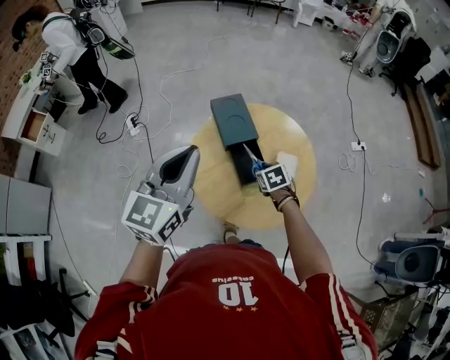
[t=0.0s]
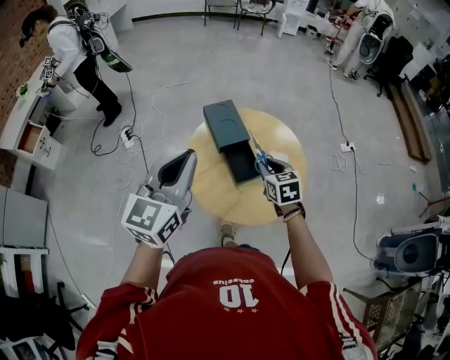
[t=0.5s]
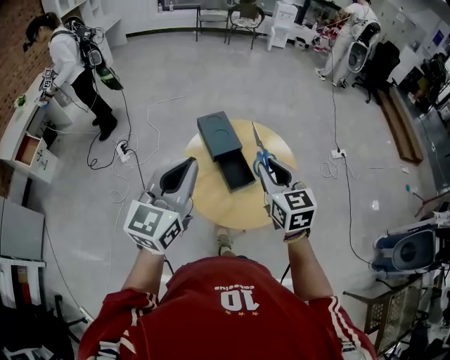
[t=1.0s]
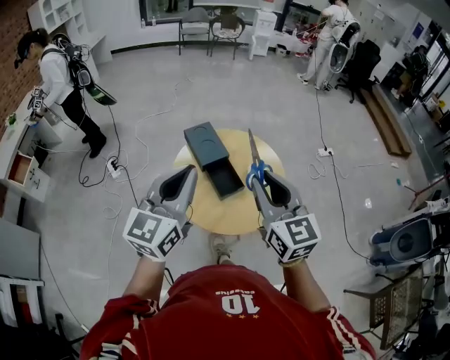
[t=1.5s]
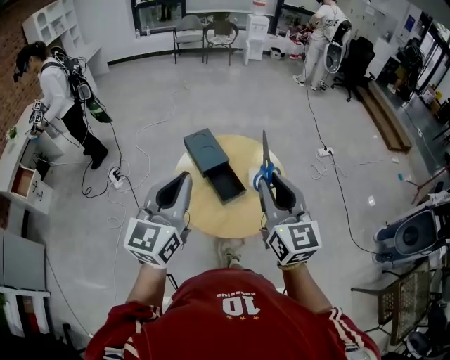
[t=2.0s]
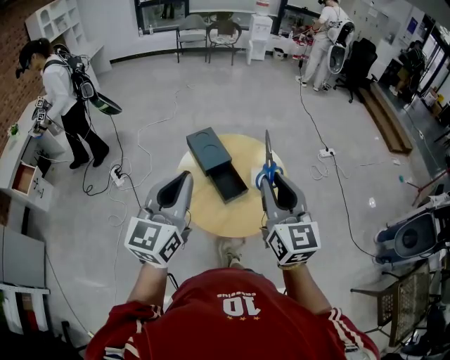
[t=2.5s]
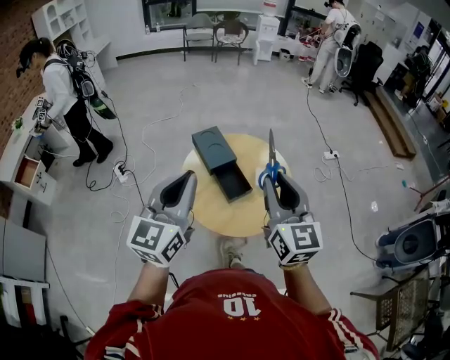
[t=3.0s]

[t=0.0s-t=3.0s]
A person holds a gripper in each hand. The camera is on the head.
t=0.0s to t=1.5s: The left gripper moves backward and upward, about 10 cm; the right gripper moves upward and backward, roughly 40 cm, and angles its fingers upward, by some 60 degrees.
t=1.5s to t=3.0s: The grippers make only small movements.

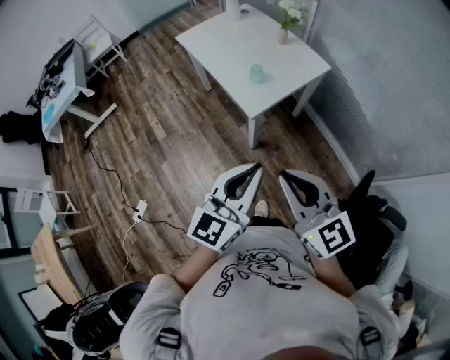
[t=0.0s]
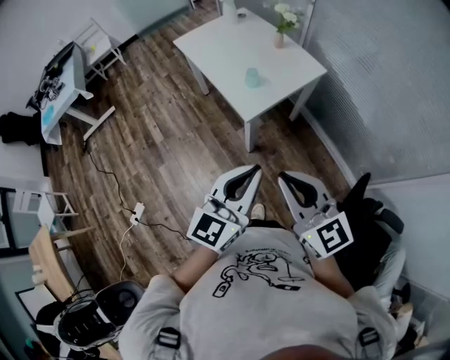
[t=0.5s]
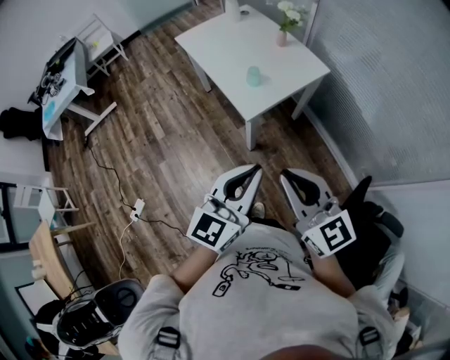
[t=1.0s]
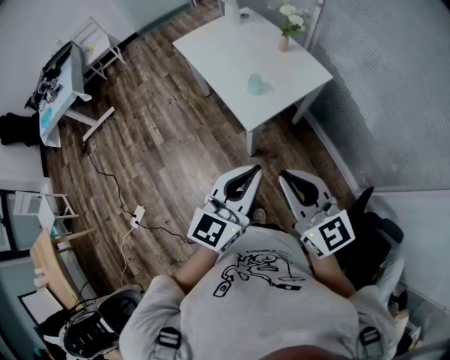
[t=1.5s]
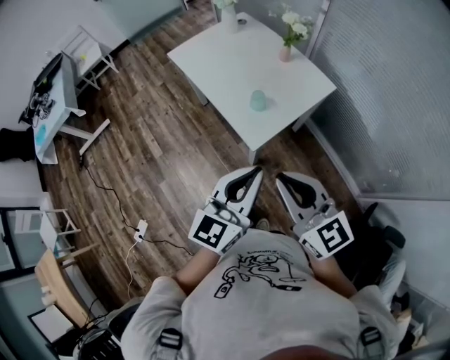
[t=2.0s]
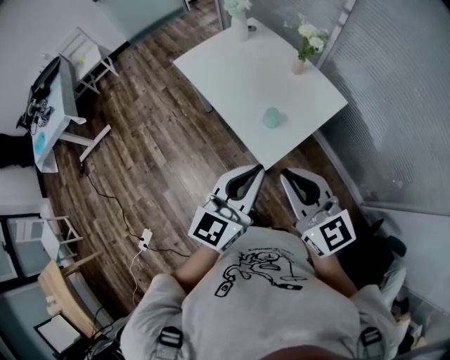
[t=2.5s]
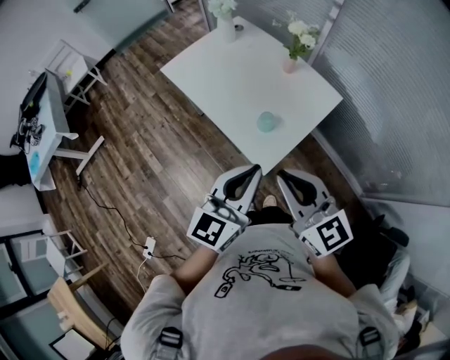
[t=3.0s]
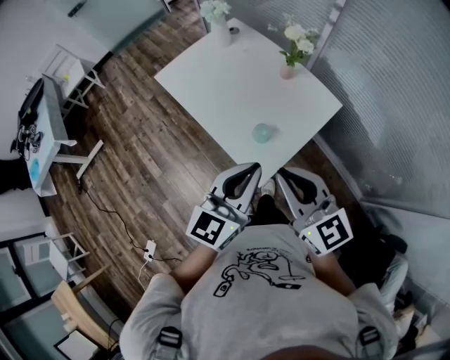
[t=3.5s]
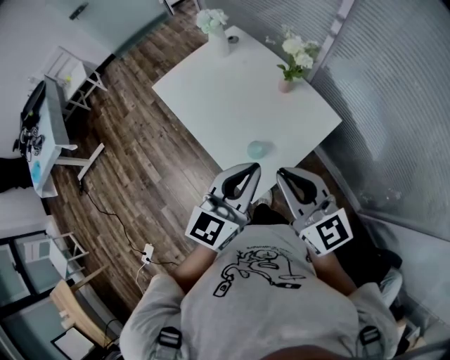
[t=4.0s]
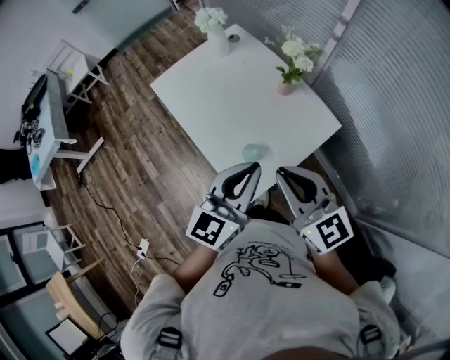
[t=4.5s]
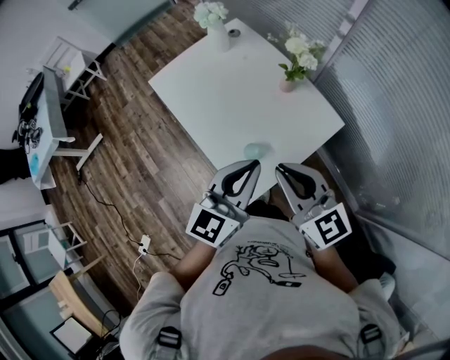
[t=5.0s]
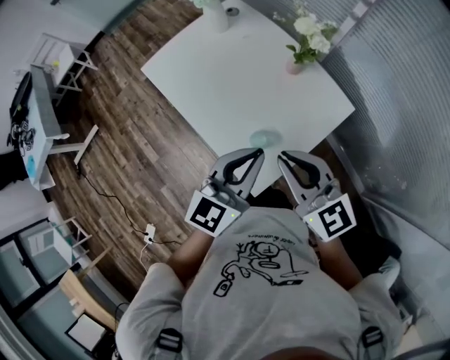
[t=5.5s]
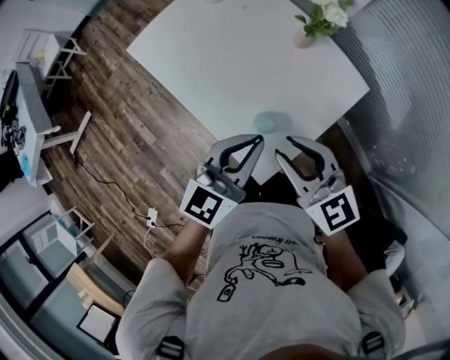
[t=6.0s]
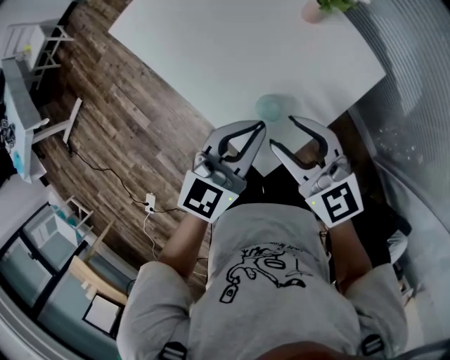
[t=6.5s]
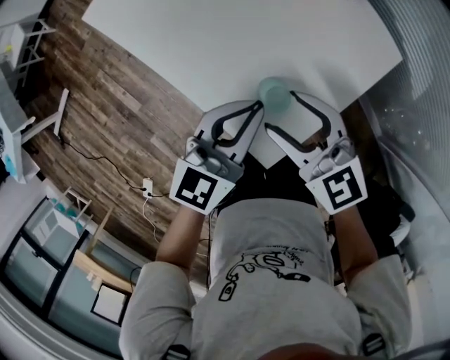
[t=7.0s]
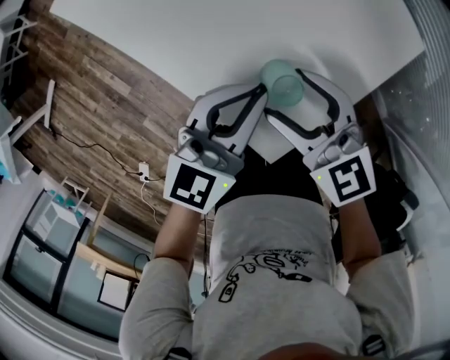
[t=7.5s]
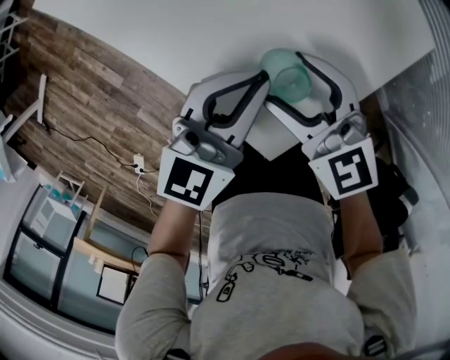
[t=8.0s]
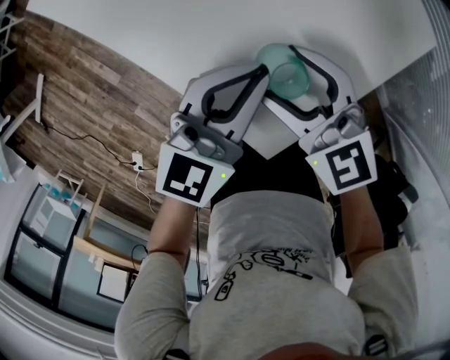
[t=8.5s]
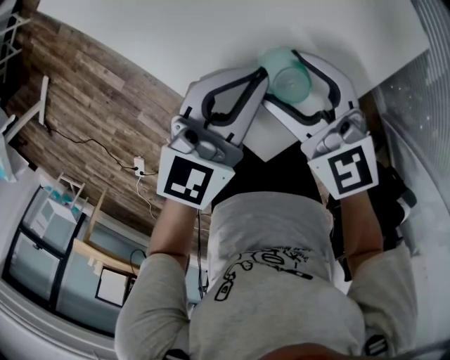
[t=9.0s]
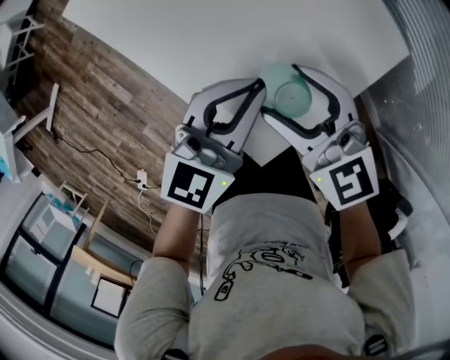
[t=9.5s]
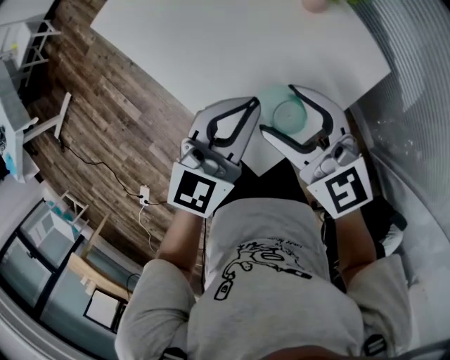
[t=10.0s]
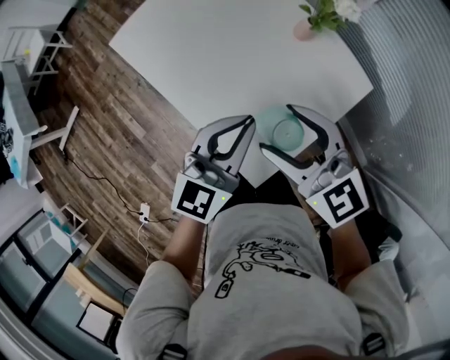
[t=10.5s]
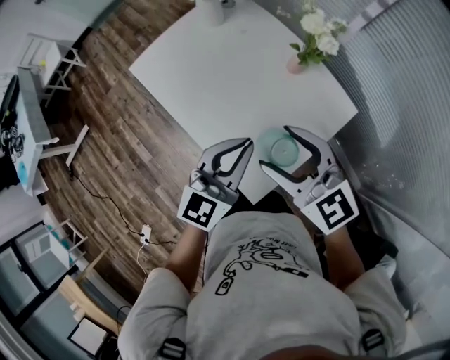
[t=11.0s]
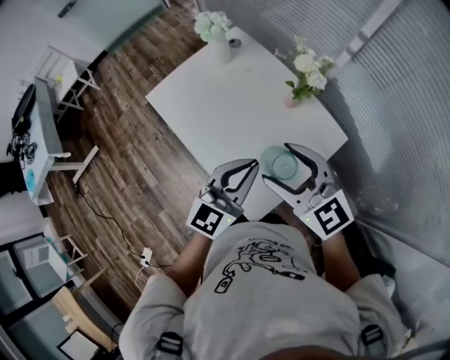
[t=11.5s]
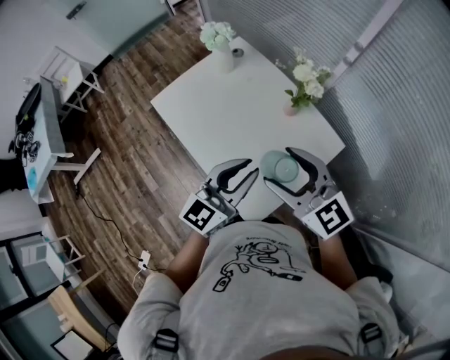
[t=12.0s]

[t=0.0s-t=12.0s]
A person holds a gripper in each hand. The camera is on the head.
t=0.0s to t=2.0s: Both grippers travel together forward, some 15 cm.
t=2.0s to t=4.0s: The grippers both shift forward by approximately 25 cm.
t=4.0s to t=6.0s: The two grippers go approximately 15 cm downward and forward.
t=6.0s to t=8.0s: Both grippers move downward, roughly 20 cm. The right gripper opens up.
t=8.0s to t=10.0s: Both grippers travel together upward, about 15 cm.
t=10.0s to t=12.0s: Both grippers travel together upward, roughly 15 cm.

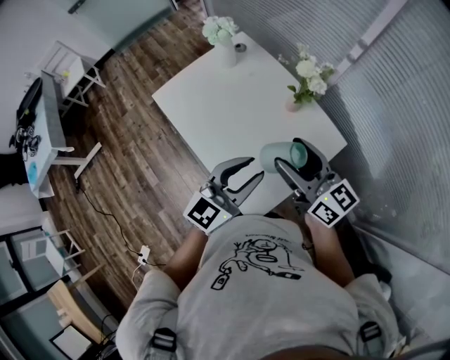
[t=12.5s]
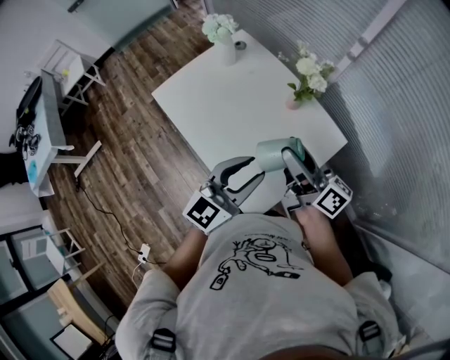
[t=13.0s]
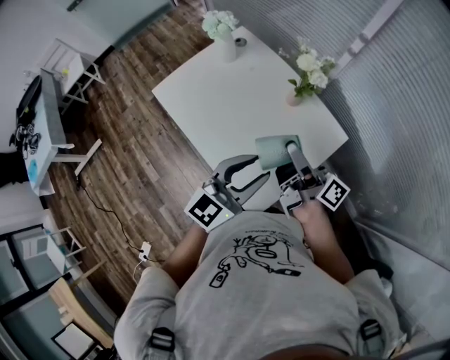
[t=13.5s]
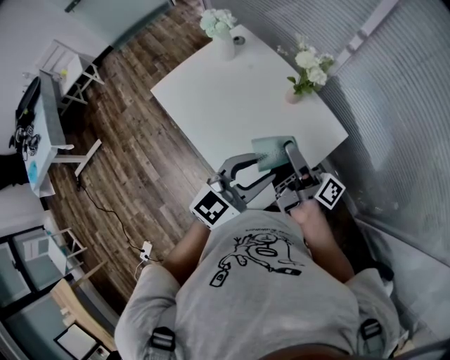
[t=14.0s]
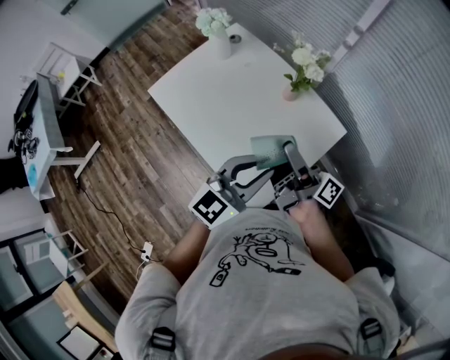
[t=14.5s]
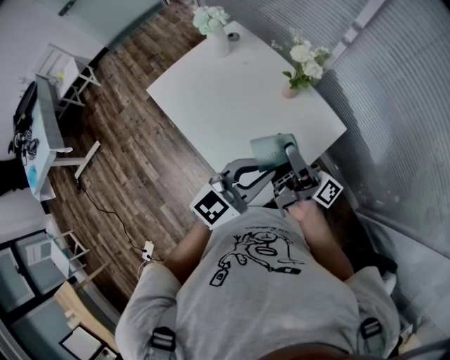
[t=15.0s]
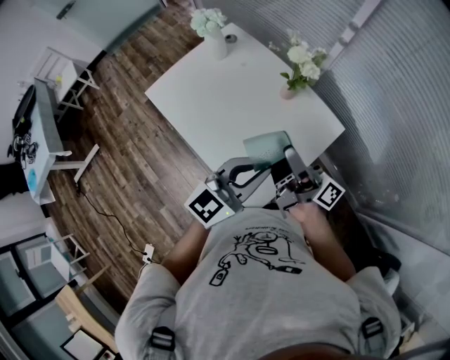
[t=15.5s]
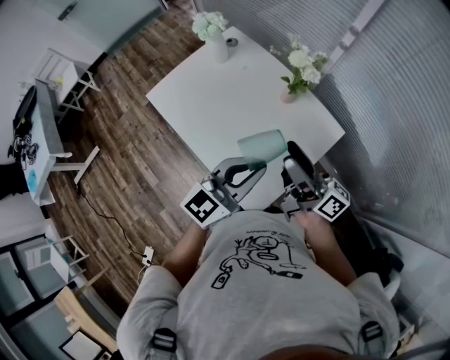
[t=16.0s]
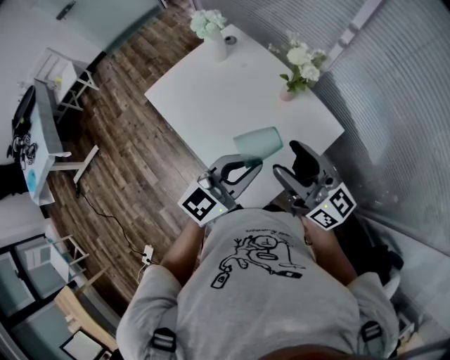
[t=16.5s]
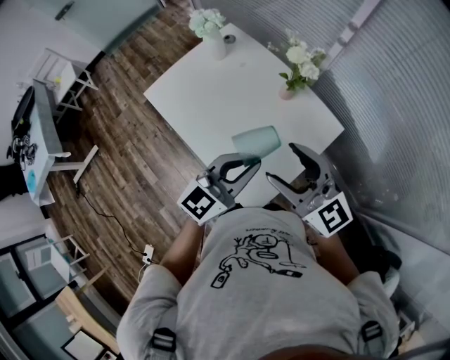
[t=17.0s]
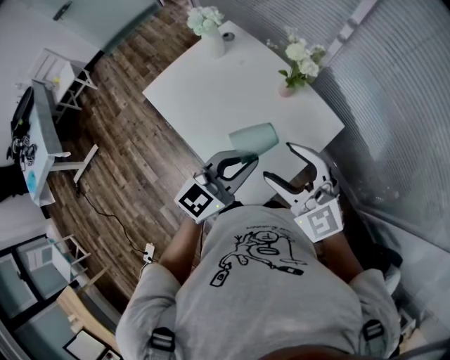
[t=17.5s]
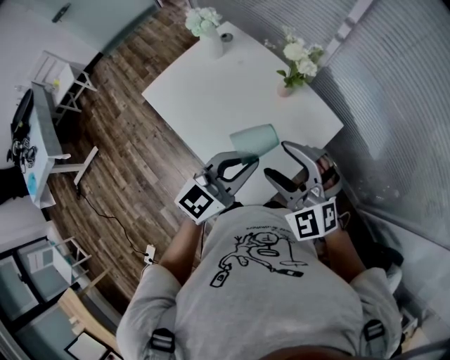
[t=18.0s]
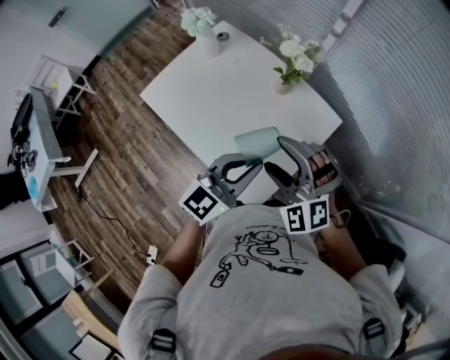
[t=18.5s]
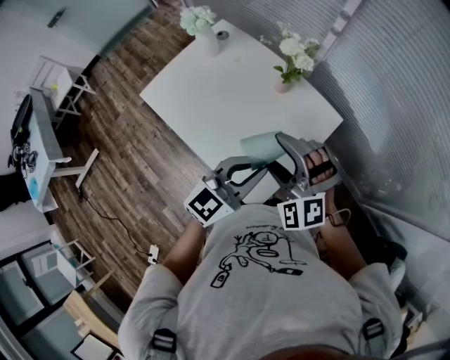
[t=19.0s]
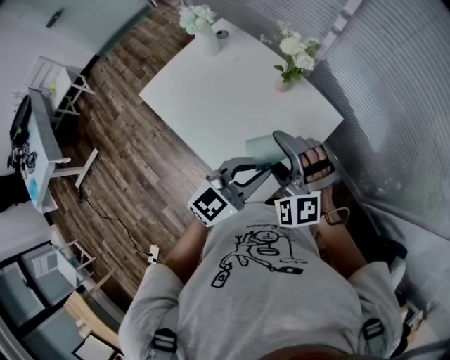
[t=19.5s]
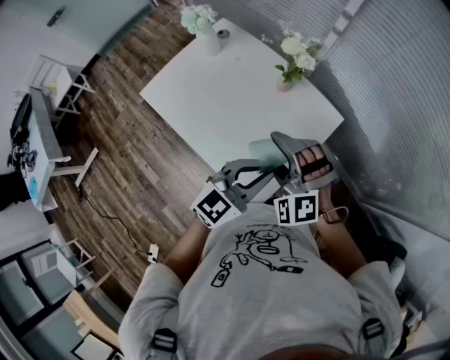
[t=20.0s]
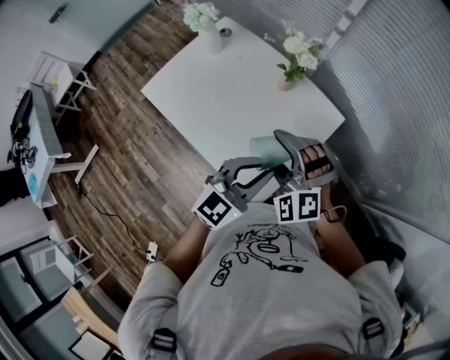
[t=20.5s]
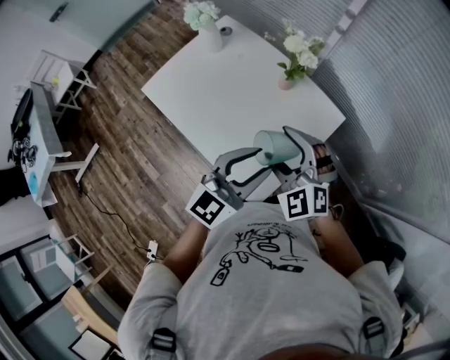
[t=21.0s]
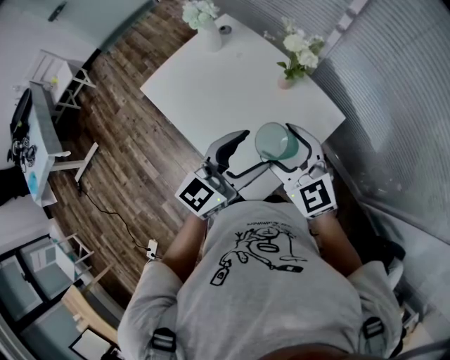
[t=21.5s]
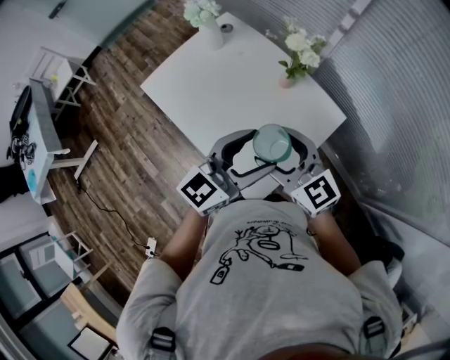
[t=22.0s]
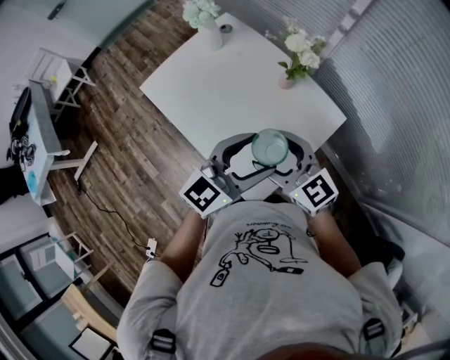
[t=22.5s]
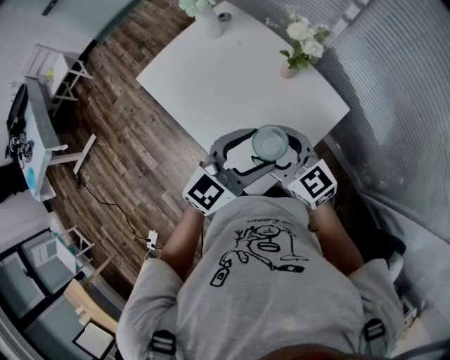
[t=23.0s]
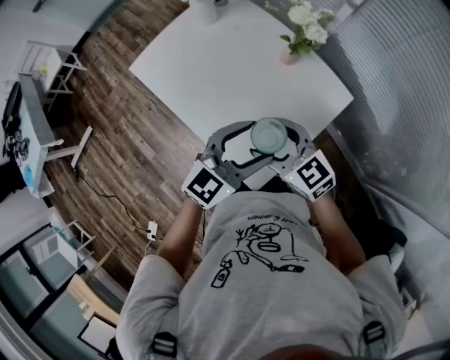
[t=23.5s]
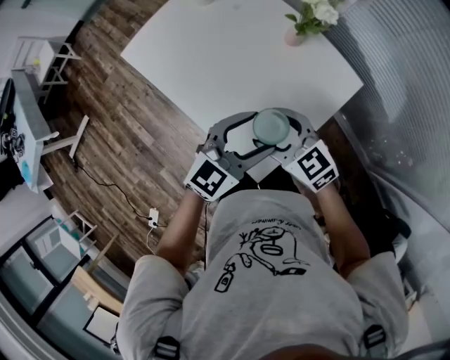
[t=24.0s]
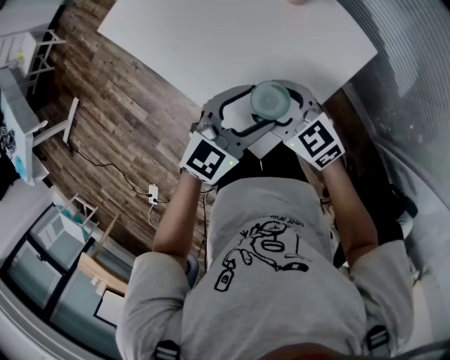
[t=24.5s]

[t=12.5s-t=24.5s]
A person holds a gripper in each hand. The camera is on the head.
t=12.5s to t=14.5s: The right gripper rotates around the line of its fingers by roughly 50 degrees, clockwise from behind.
t=14.5s to t=16.5s: The right gripper moves about 5 cm, and rolls counterclockwise, seen from behind, by approximately 50 degrees.
t=16.5s to t=18.5s: The right gripper ends up roughly 5 cm from where it was, and rotates around the line of its fingers by some 80 degrees, counterclockwise from behind.
t=18.5s to t=20.5s: The grippers make only small movements.
t=20.5s to t=22.5s: The right gripper rolls clockwise, seen from behind, by about 50 degrees; the left gripper opens.
t=22.5s to t=24.5s: Both grippers travel together downward, roughly 15 cm. The right gripper turns by approximately 20 degrees.
